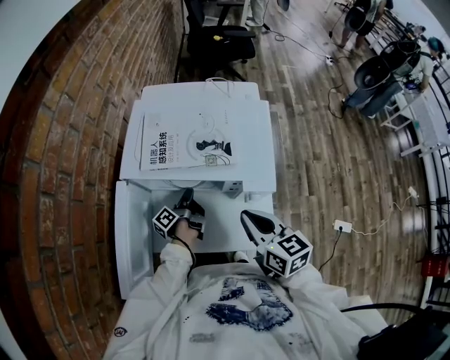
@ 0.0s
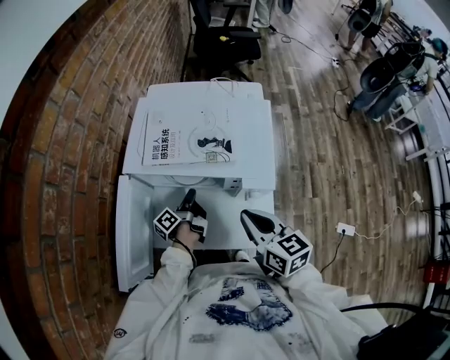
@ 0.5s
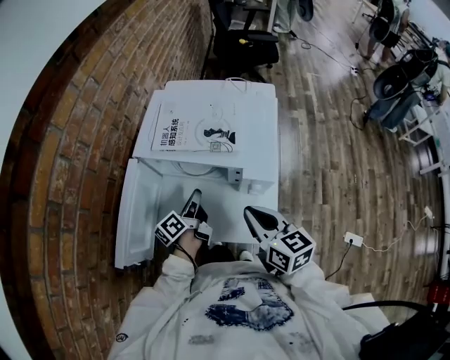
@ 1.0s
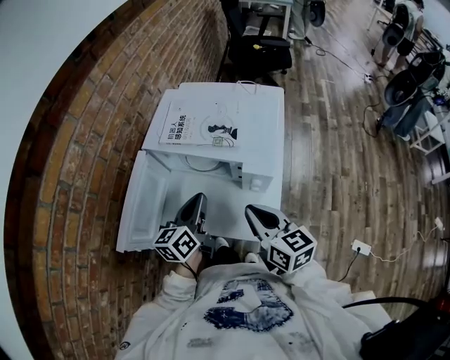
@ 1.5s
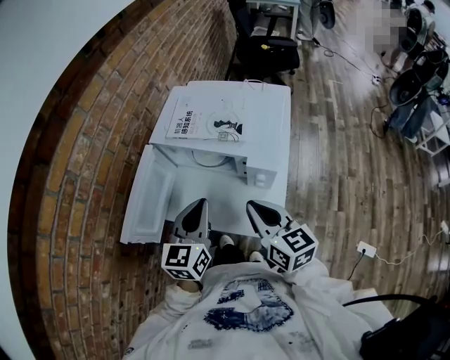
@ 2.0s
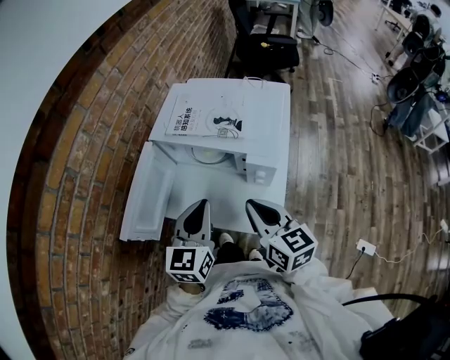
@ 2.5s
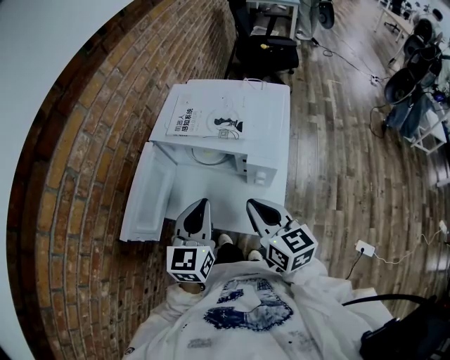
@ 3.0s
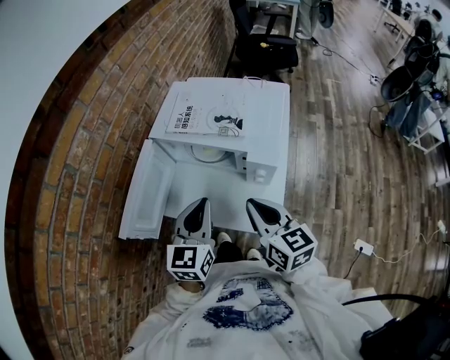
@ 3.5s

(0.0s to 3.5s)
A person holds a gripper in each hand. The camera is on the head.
0.0s - 2.0s: The right gripper ends up roughly 10 cm from where it was.

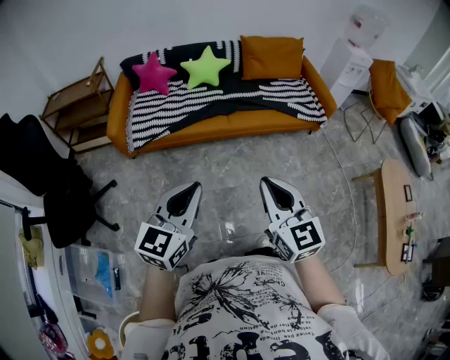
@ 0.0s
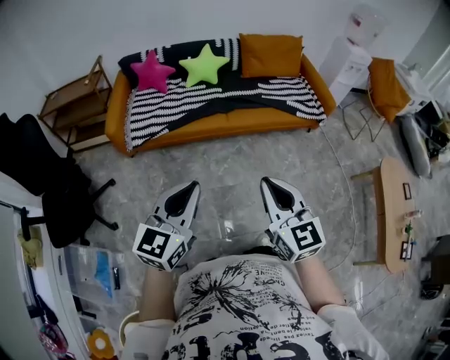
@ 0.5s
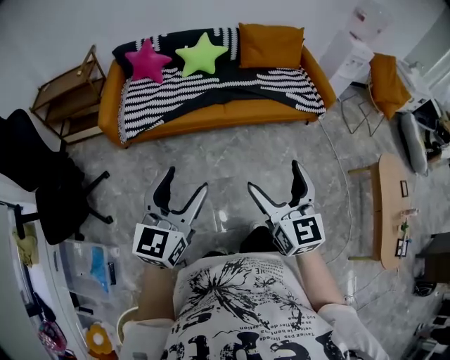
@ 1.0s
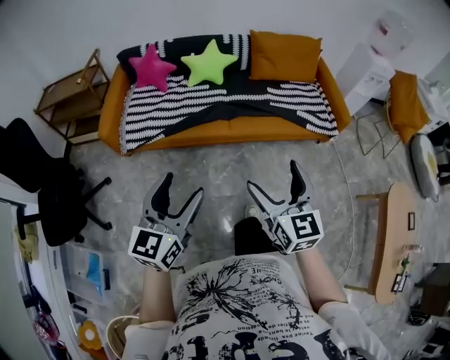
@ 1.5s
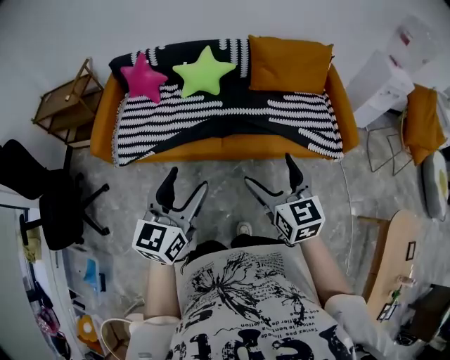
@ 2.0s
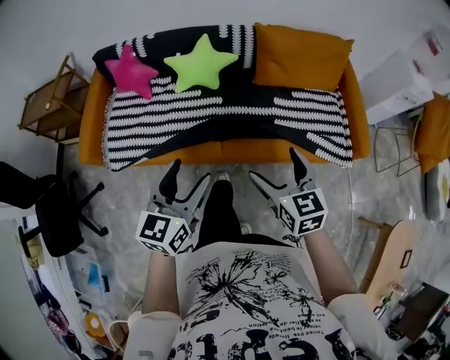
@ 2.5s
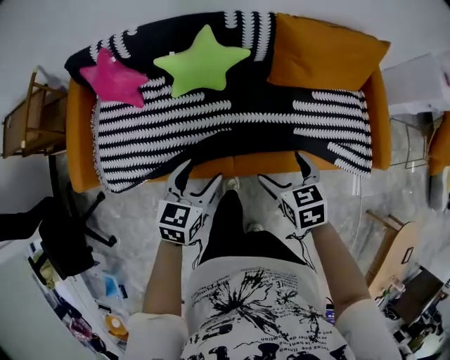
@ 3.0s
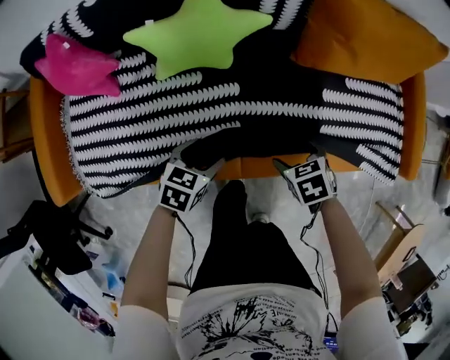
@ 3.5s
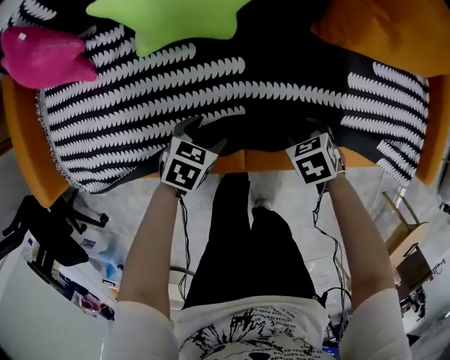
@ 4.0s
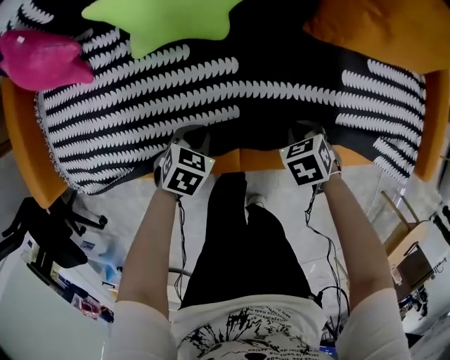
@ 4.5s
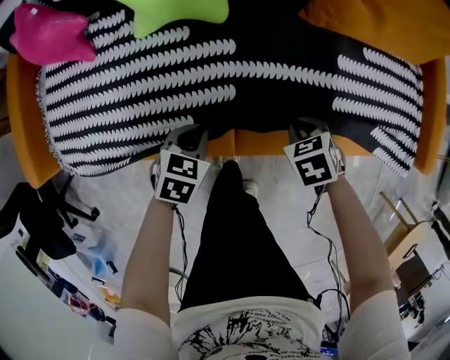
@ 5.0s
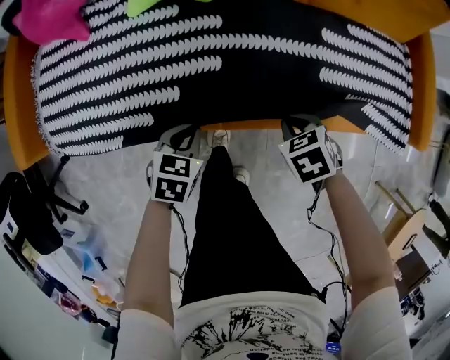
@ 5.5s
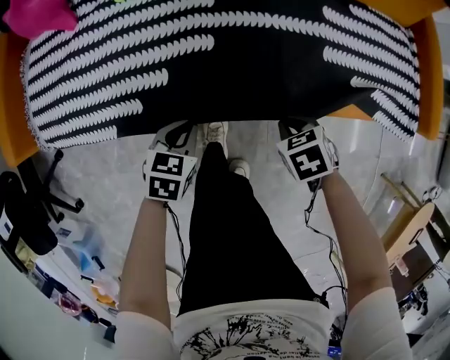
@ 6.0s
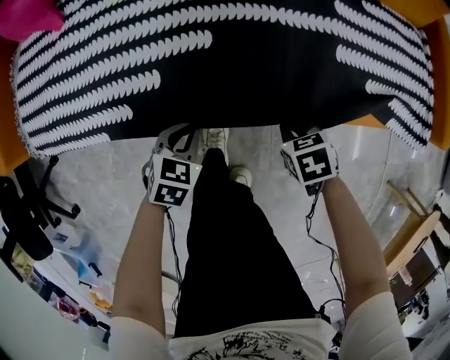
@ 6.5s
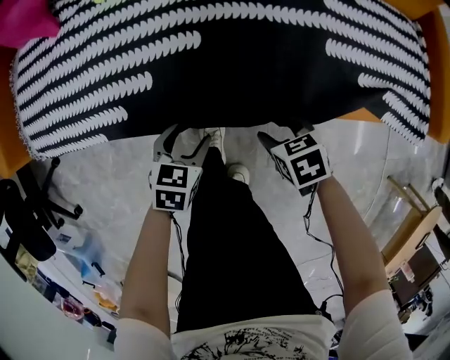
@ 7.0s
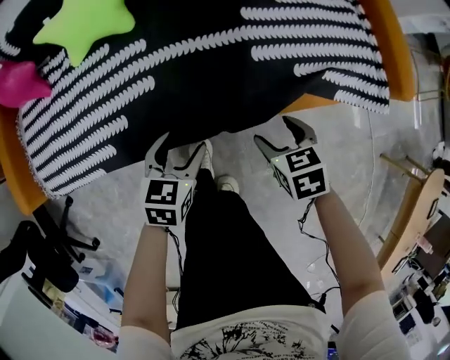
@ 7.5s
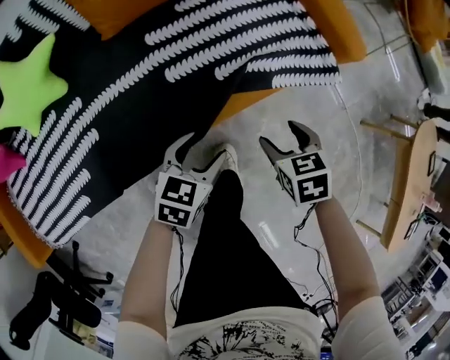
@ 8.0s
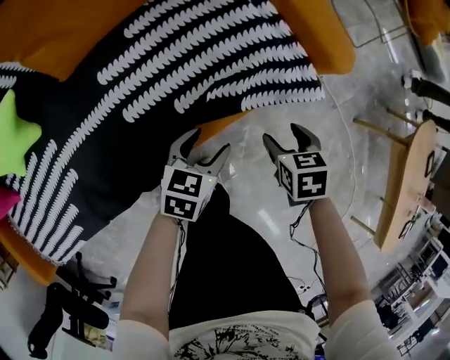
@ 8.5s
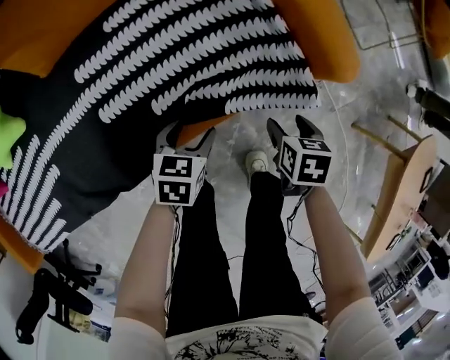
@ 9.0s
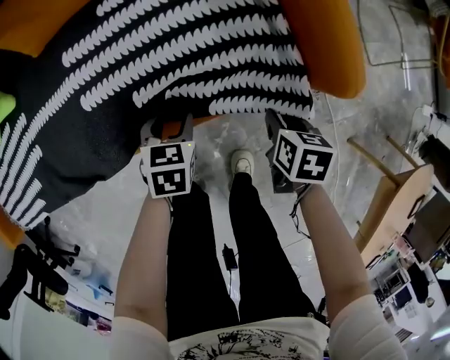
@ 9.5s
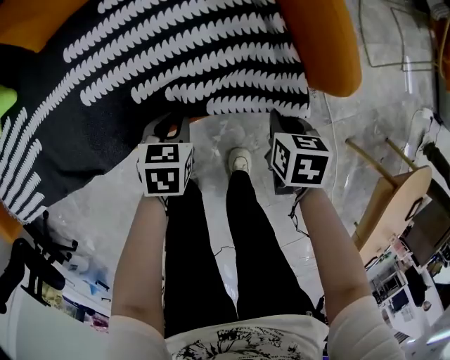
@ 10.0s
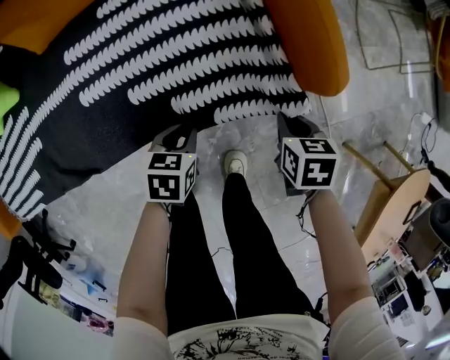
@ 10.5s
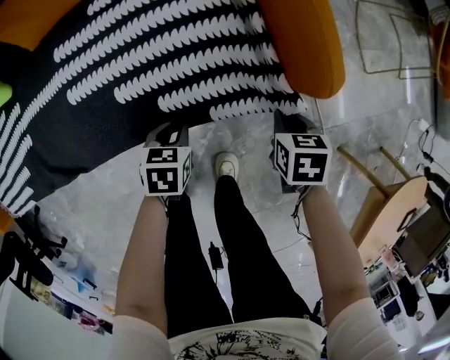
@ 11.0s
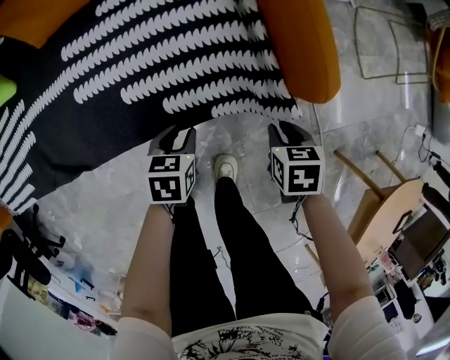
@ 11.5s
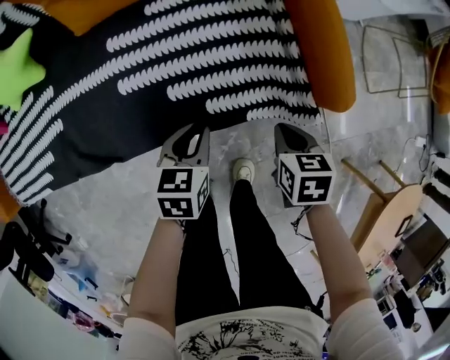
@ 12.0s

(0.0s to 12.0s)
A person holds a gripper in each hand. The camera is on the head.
0.0s - 2.0s: Both grippers move forward, some 40 cm. The right gripper opens up. The left gripper opens up.
2.0s - 4.0s: The two grippers travel together, approximately 50 cm. Both grippers travel together downward, some 60 cm. The left gripper tips its fingers downward by roughly 50 degrees. The right gripper points its fingers about 70 degrees further downward, and closes its fingers.
4.0s - 6.0s: The left gripper moves some 5 cm upward and comes back, and closes up; the right gripper shifts by about 20 cm, and closes its fingers.
6.0s - 8.0s: The left gripper shifts by approximately 40 cm, changes its angle by roughly 30 degrees, and opens. Meanwhile the right gripper ends up some 35 cm from where it was, changes its angle by some 40 degrees, and opens up.
8.0s - 10.0s: The right gripper ends up some 30 cm from where it was, and closes its fingers; the left gripper shifts by approximately 25 cm, rotates about 30 degrees, and closes up.
10.0s - 12.0s: The right gripper moves upward and to the left, roughly 10 cm, while the left gripper shifts roughly 10 cm upward.

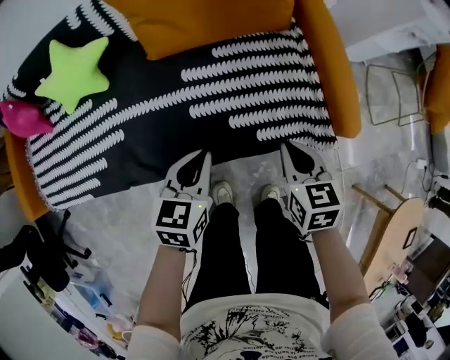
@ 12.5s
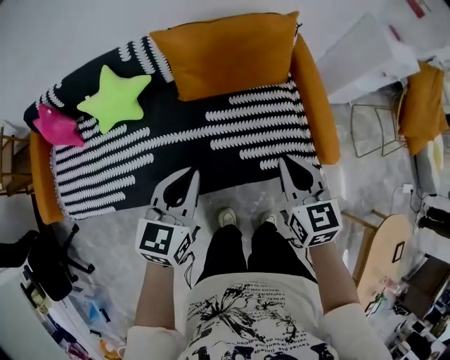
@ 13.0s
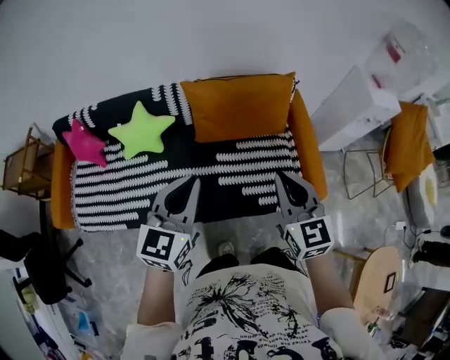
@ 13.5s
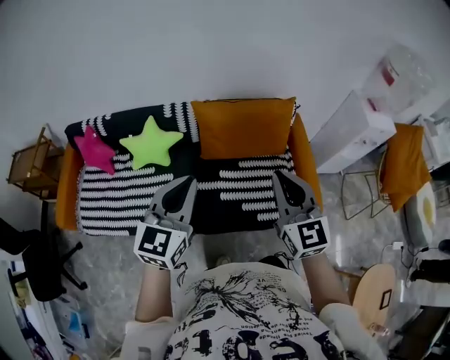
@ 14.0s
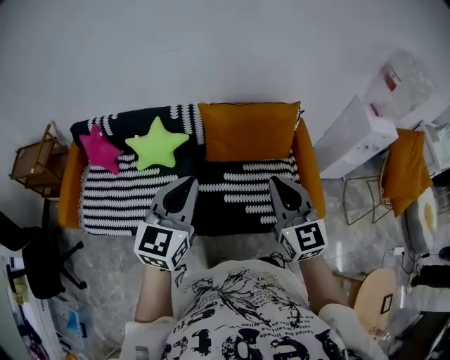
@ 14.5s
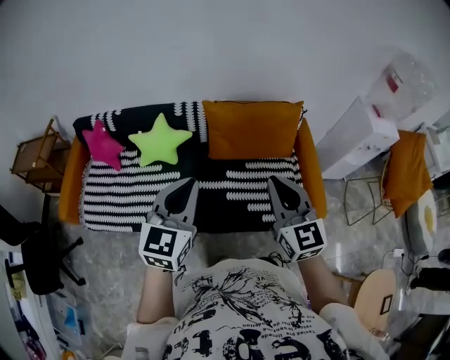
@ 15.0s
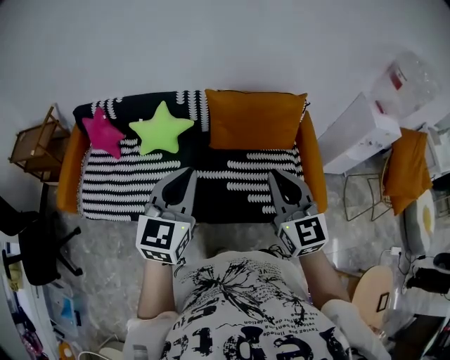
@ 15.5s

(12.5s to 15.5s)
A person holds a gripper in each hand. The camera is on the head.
12.5s - 14.0s: The grippers both shift upward by some 50 cm. The left gripper turns by about 30 degrees; the right gripper tilts its fingers about 40 degrees upward.
14.0s - 15.5s: The left gripper ends up about 5 cm from where it was. The right gripper is displaced to the left by about 5 cm.

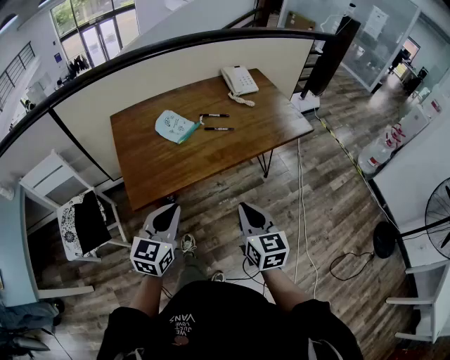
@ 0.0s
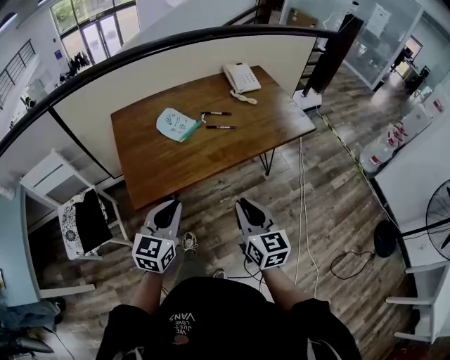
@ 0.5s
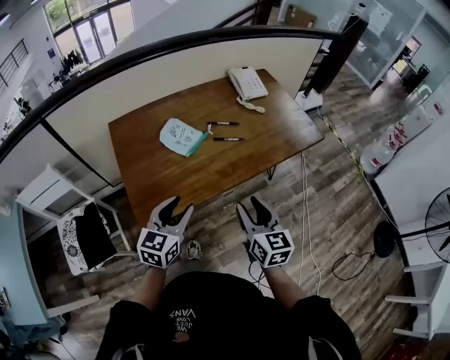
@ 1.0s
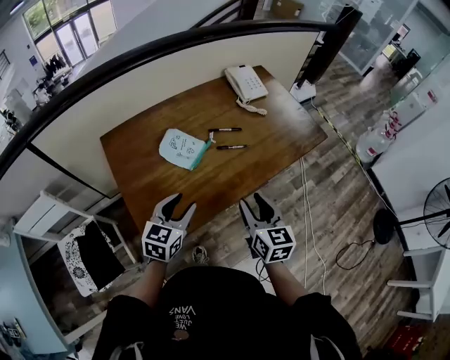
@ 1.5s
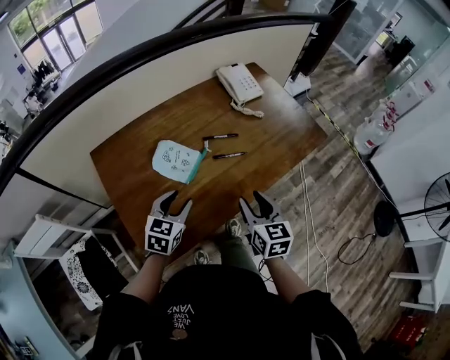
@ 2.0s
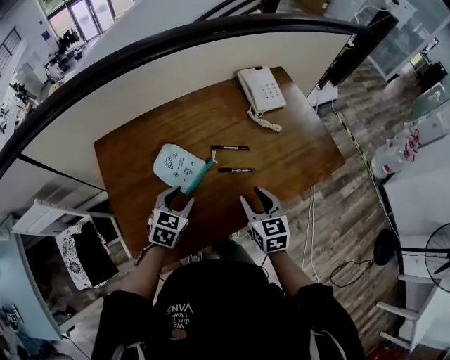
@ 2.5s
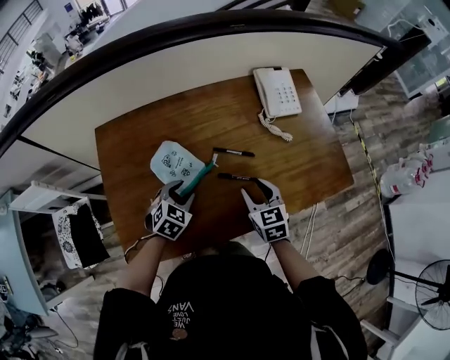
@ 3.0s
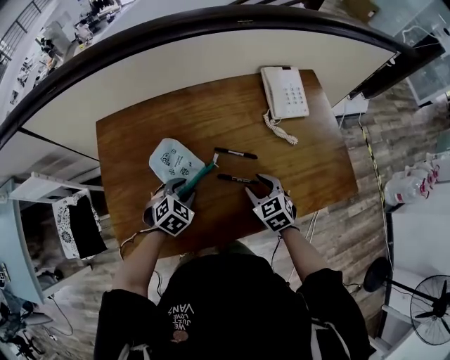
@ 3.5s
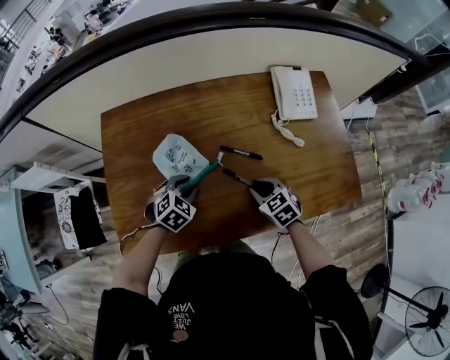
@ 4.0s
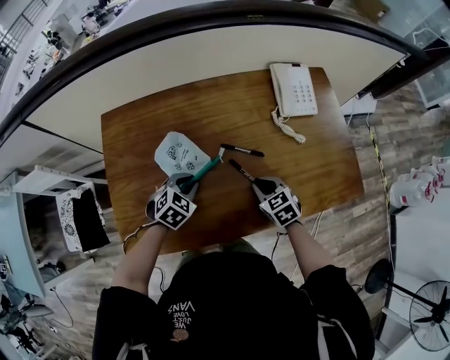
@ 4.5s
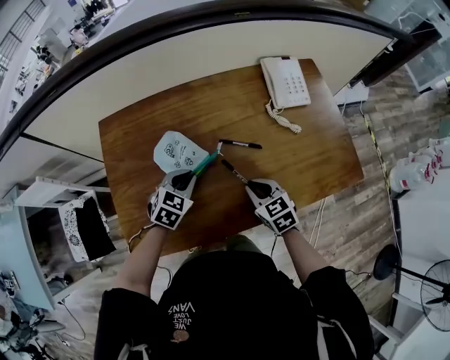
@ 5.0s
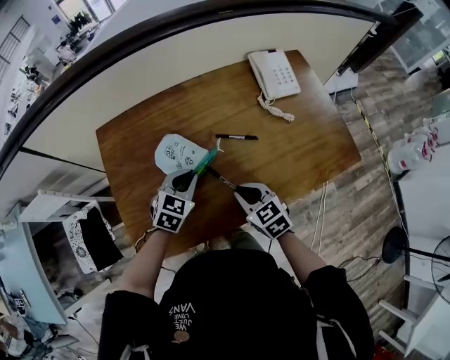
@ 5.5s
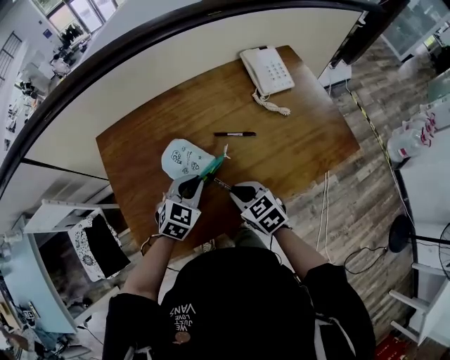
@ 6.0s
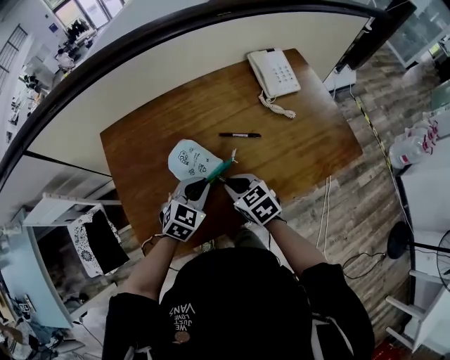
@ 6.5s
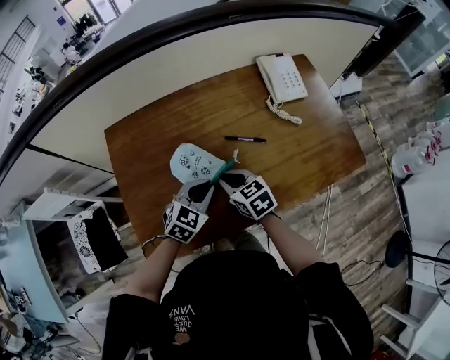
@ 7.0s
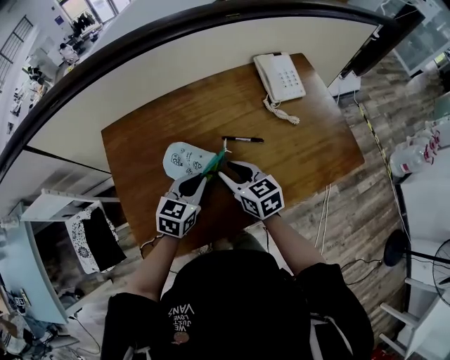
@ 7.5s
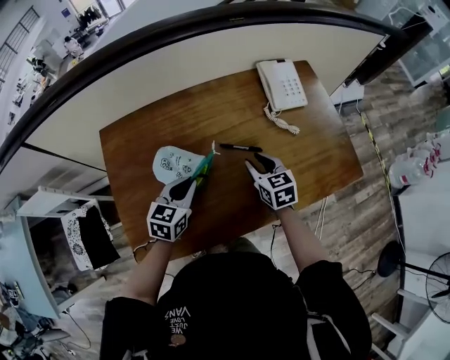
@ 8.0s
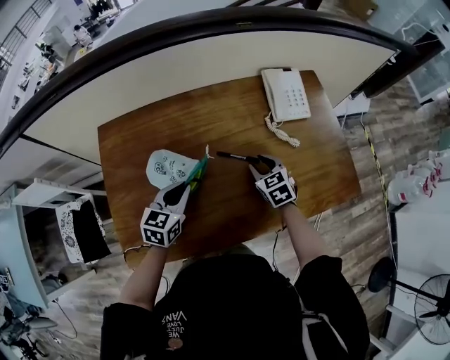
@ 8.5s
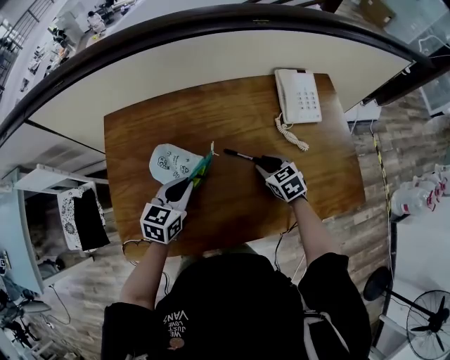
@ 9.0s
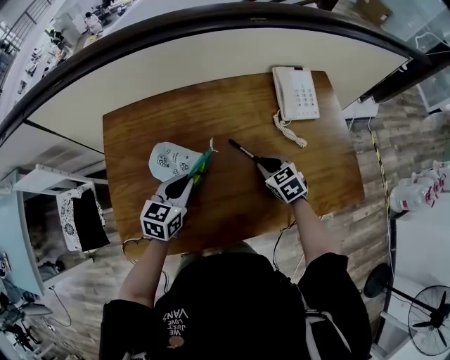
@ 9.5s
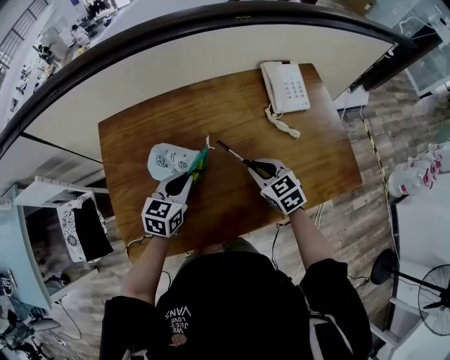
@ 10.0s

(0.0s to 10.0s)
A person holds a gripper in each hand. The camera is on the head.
0.0s - 2.0s: Both grippers move forward, approximately 25 cm. The right gripper opens its fingers. The left gripper rotates about 20 degrees, and opens its fingers.
2.0s - 4.0s: The left gripper is displaced downward by some 10 cm, and turns by roughly 30 degrees. Meanwhile the right gripper changes place by about 25 cm, and swivels about 60 degrees.
4.0s - 6.0s: The left gripper is displaced upward by some 10 cm, rotates approximately 20 degrees, and closes. Meanwhile the right gripper shifts some 15 cm to the left, backward and upward.
6.0s - 8.0s: The right gripper goes roughly 15 cm forward and to the right; the left gripper rotates approximately 30 degrees.
8.0s - 10.0s: The right gripper rotates some 20 degrees.
